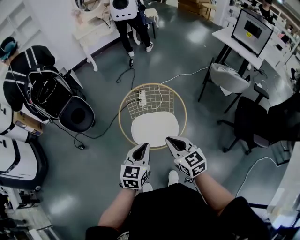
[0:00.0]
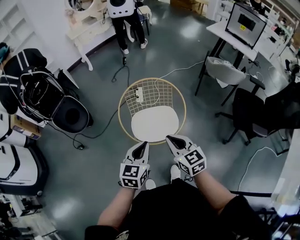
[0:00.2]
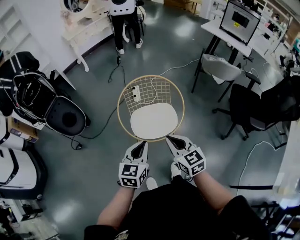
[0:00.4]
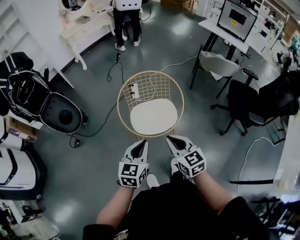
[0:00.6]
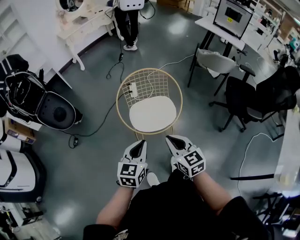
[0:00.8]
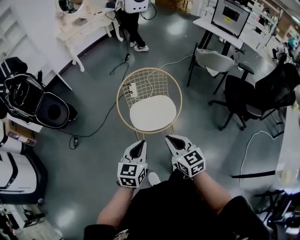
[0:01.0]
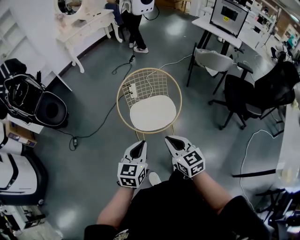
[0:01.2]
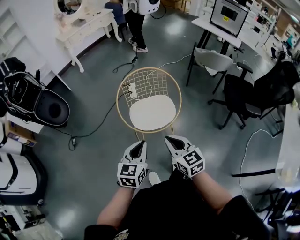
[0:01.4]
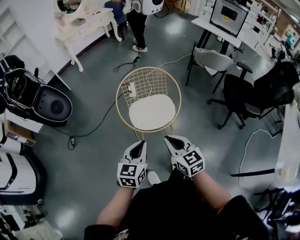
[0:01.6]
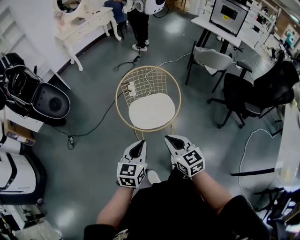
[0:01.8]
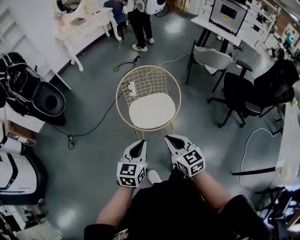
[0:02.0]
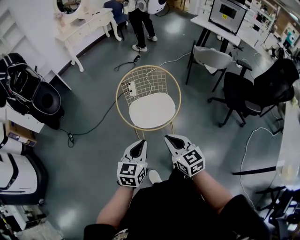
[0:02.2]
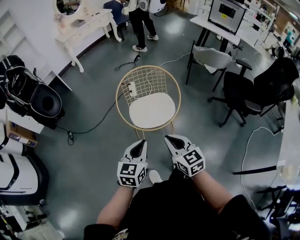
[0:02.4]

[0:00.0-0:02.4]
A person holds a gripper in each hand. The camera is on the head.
0:00.0 to 0:01.2: Both grippers move backward and to the left, some 15 cm.
0:01.2 to 0:02.4: The grippers make only small movements.

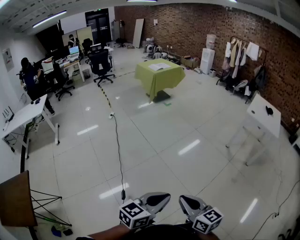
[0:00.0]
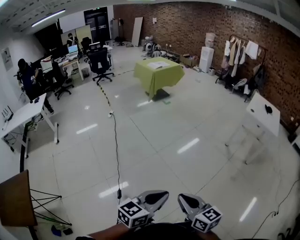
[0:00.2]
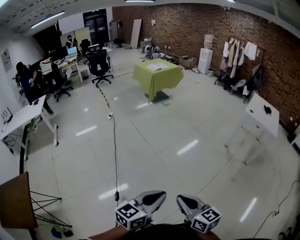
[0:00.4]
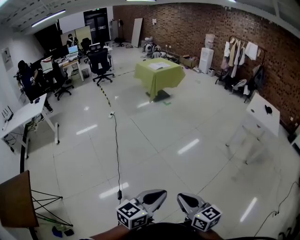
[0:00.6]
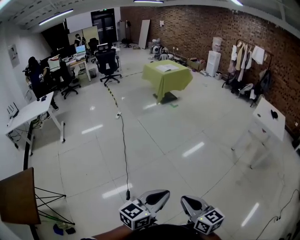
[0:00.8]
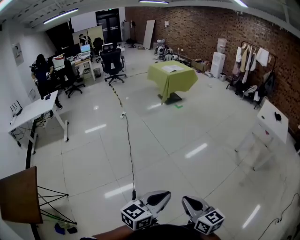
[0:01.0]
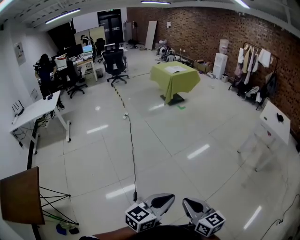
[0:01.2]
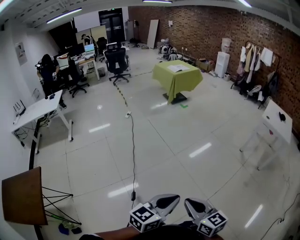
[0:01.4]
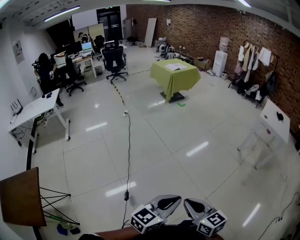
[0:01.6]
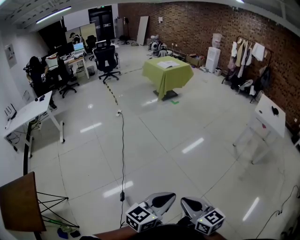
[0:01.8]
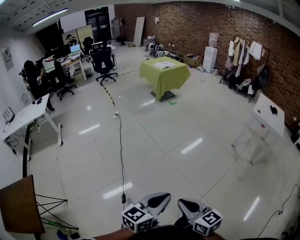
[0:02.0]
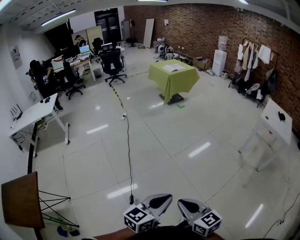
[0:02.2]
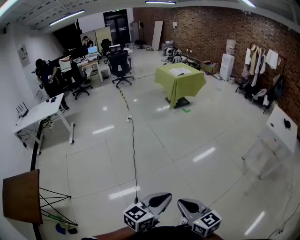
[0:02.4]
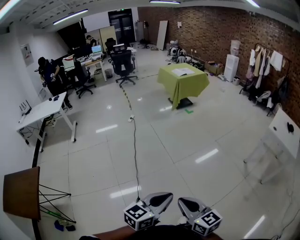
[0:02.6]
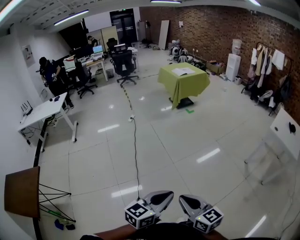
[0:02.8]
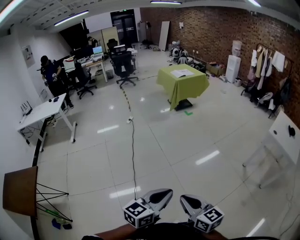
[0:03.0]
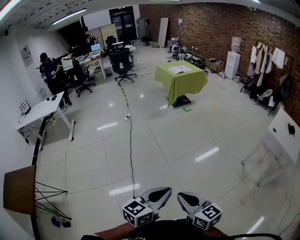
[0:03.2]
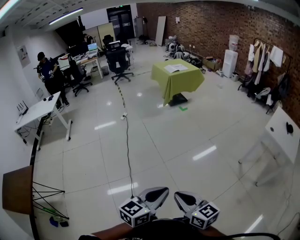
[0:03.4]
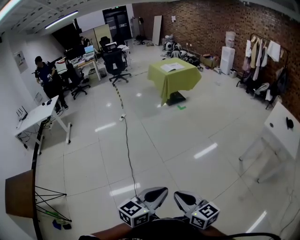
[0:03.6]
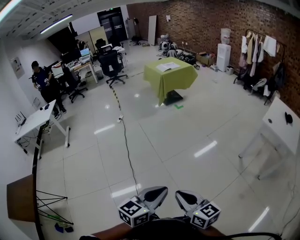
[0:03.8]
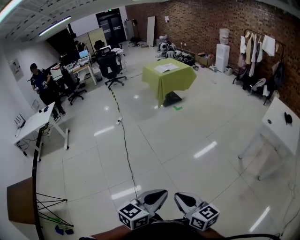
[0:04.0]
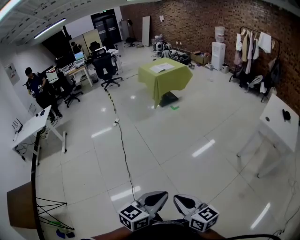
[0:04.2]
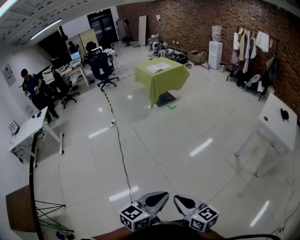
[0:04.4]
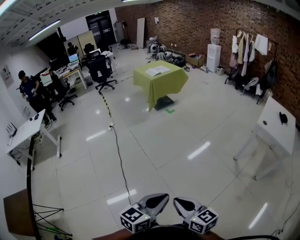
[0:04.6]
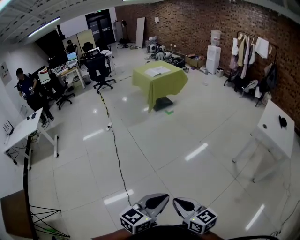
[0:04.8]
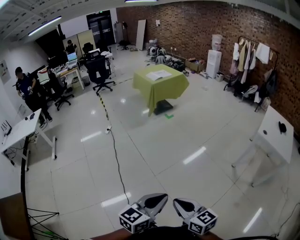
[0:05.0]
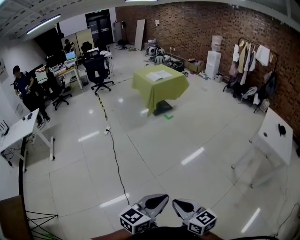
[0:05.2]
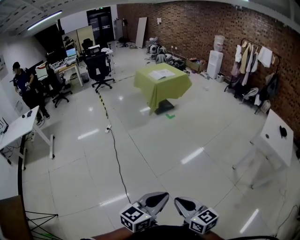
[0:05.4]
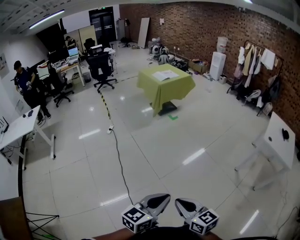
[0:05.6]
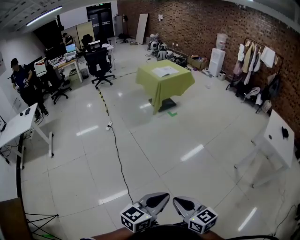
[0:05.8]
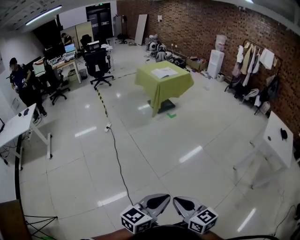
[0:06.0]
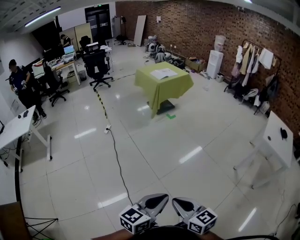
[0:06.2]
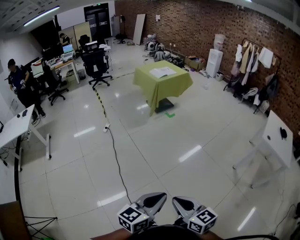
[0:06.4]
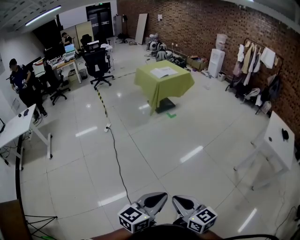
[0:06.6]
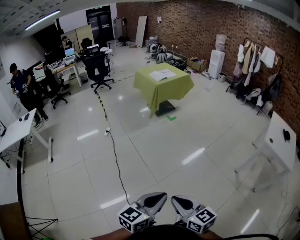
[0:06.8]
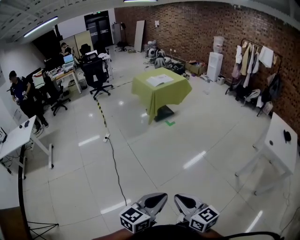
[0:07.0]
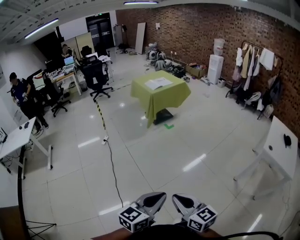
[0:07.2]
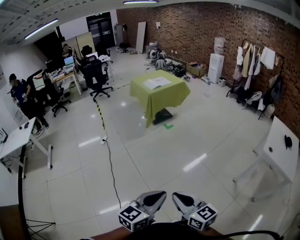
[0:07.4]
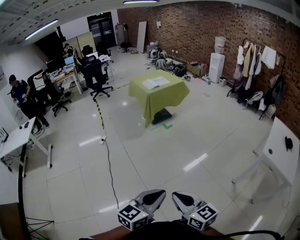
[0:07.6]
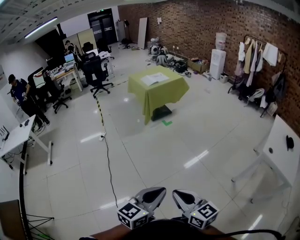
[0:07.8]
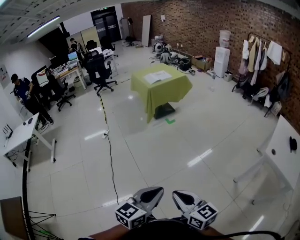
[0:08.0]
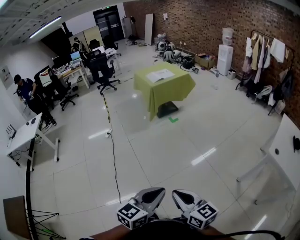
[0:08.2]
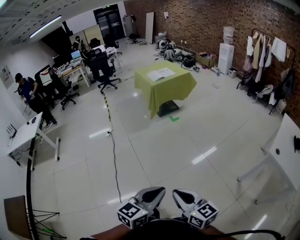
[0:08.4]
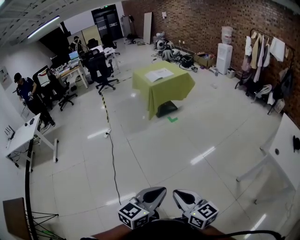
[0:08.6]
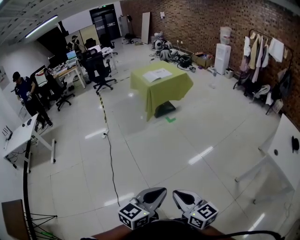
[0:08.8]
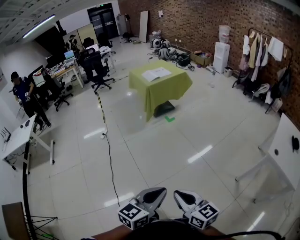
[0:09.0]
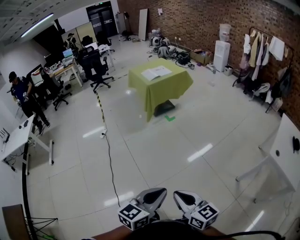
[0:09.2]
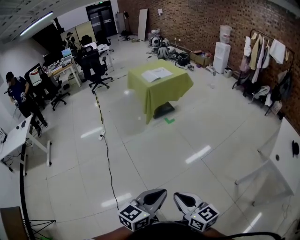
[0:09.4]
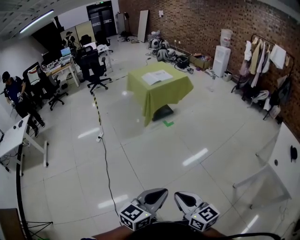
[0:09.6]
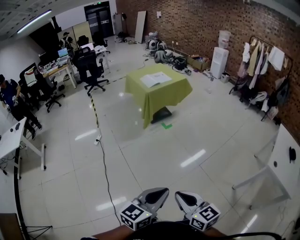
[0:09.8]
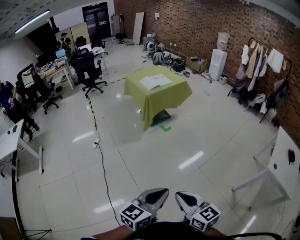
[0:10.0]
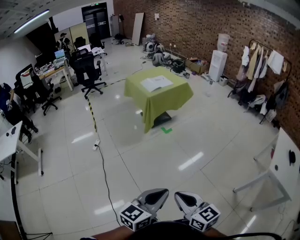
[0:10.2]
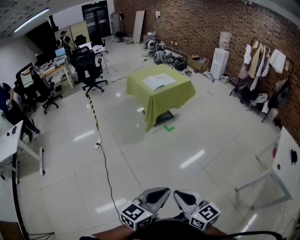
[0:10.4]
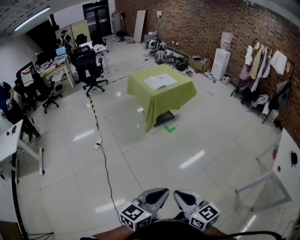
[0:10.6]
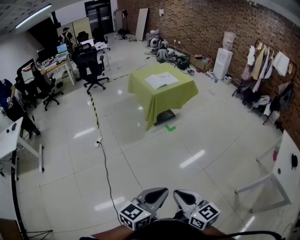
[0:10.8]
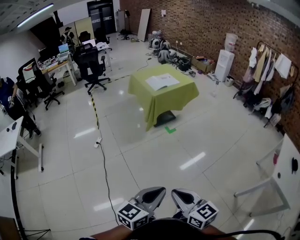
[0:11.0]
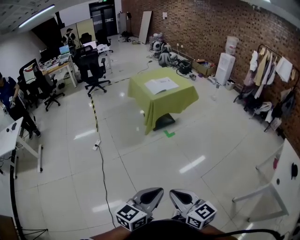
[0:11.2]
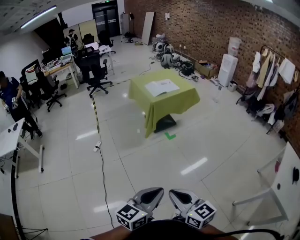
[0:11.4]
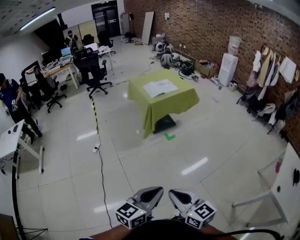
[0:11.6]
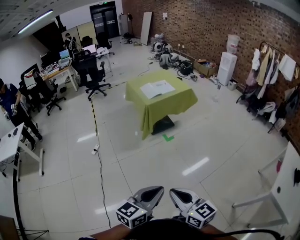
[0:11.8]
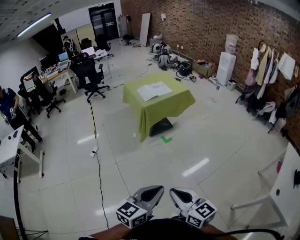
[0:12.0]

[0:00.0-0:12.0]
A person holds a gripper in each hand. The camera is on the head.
0:00.0 to 0:01.6: Both grippers move to the left, approximately 10 cm.
0:01.6 to 0:03.0: The two grippers go about 20 cm forward and to the right.
0:03.0 to 0:04.4: The grippers both shift to the right and forward by roughly 15 cm.
0:04.4 to 0:06.0: The grippers both shift to the left and forward by about 25 cm.
0:06.0 to 0:07.6: Both grippers travel together to the right and forward, approximately 25 cm.
0:07.6 to 0:09.0: Both grippers travel together forward, about 5 cm.
0:09.0 to 0:10.4: The grippers both shift forward and to the left by approximately 25 cm.
0:10.4 to 0:12.0: Both grippers move forward and to the right, roughly 20 cm.

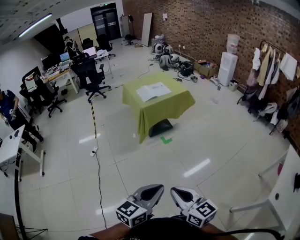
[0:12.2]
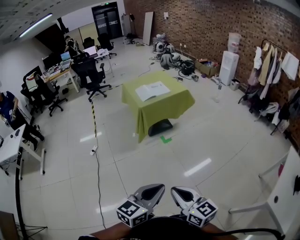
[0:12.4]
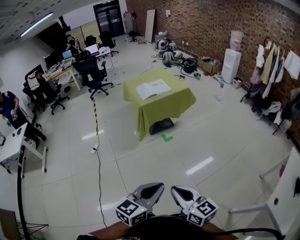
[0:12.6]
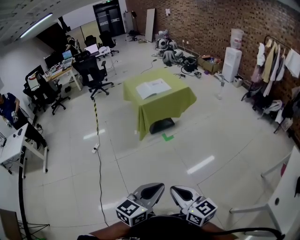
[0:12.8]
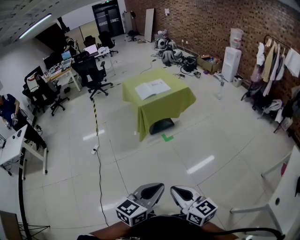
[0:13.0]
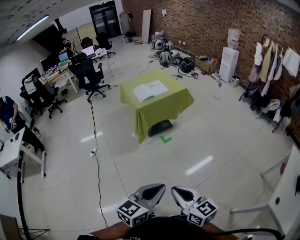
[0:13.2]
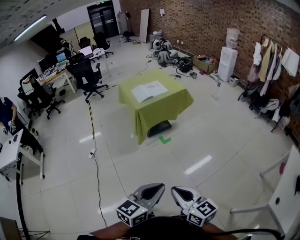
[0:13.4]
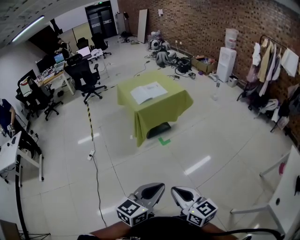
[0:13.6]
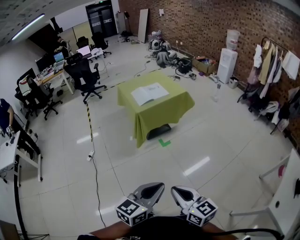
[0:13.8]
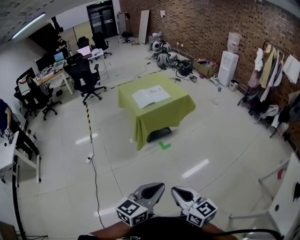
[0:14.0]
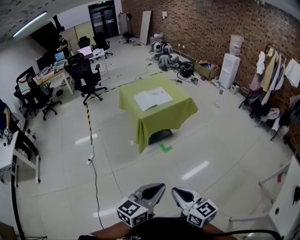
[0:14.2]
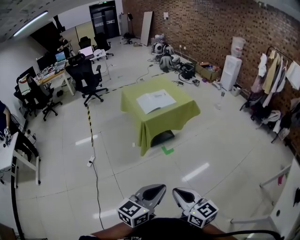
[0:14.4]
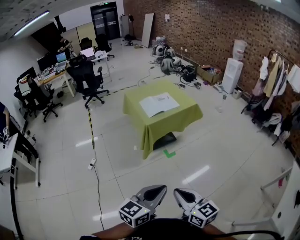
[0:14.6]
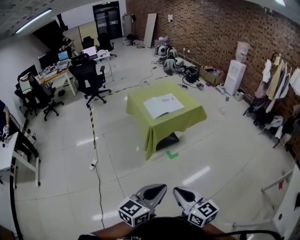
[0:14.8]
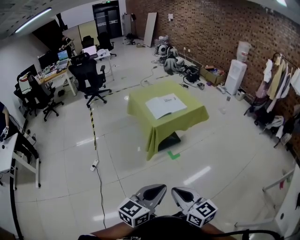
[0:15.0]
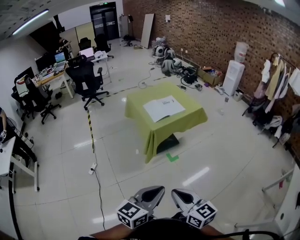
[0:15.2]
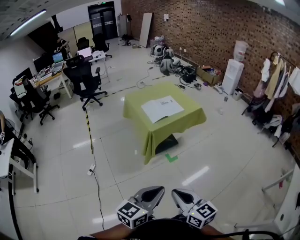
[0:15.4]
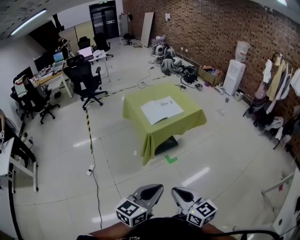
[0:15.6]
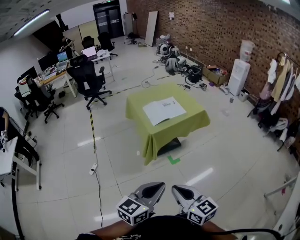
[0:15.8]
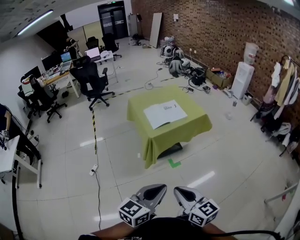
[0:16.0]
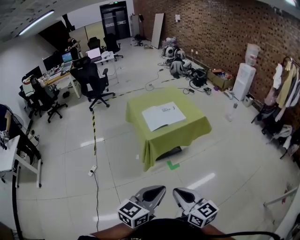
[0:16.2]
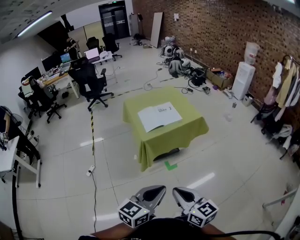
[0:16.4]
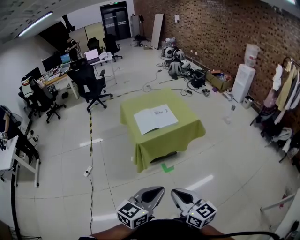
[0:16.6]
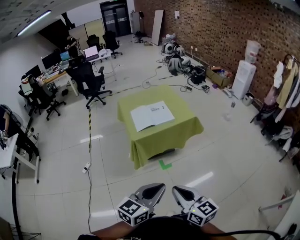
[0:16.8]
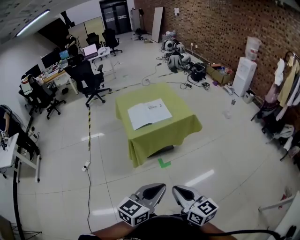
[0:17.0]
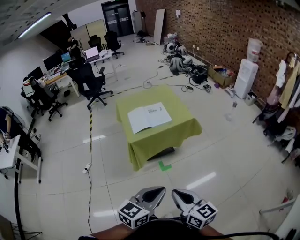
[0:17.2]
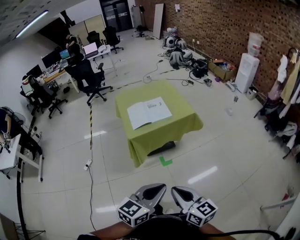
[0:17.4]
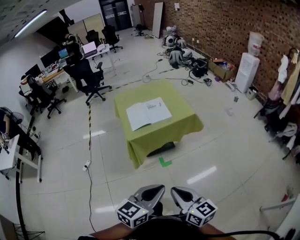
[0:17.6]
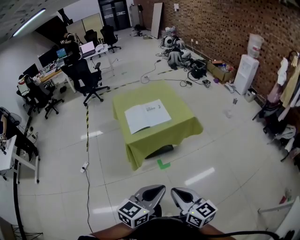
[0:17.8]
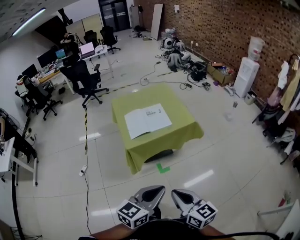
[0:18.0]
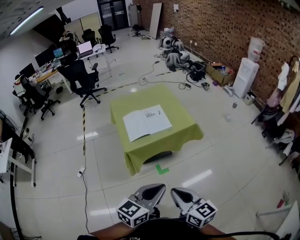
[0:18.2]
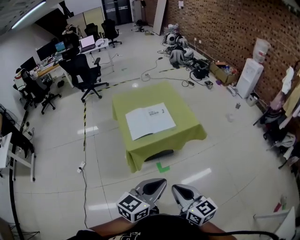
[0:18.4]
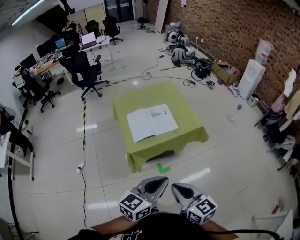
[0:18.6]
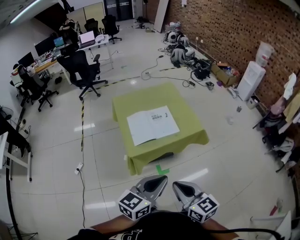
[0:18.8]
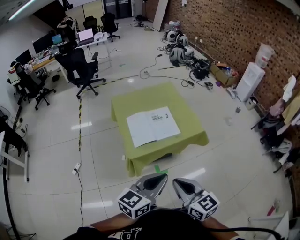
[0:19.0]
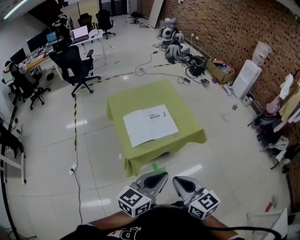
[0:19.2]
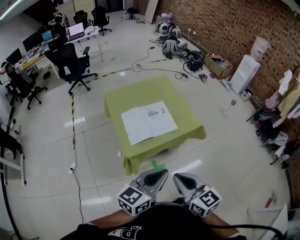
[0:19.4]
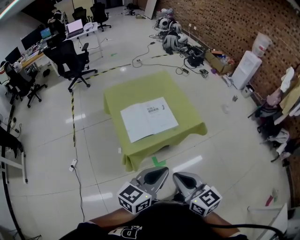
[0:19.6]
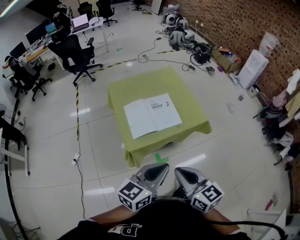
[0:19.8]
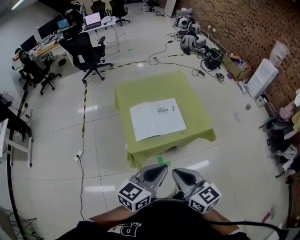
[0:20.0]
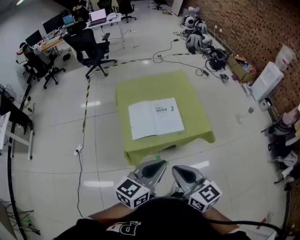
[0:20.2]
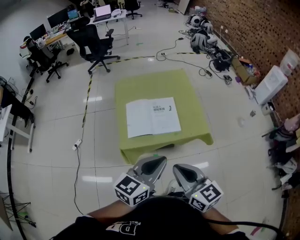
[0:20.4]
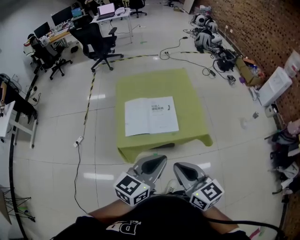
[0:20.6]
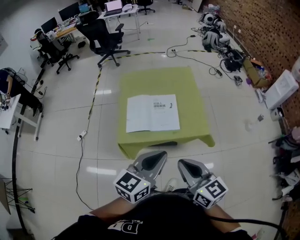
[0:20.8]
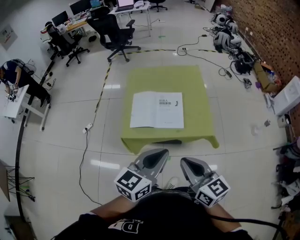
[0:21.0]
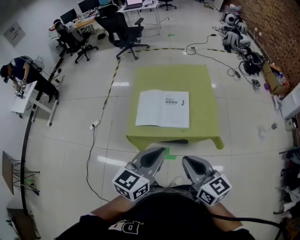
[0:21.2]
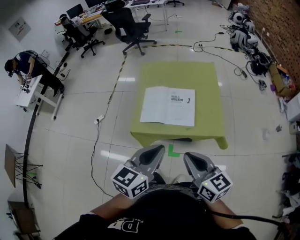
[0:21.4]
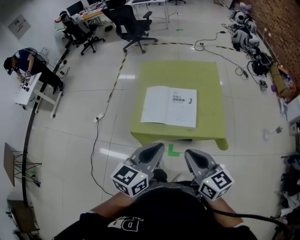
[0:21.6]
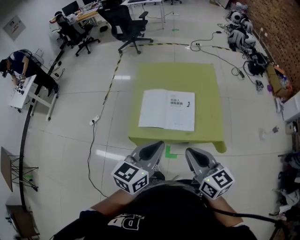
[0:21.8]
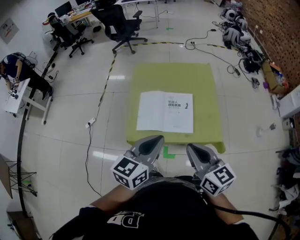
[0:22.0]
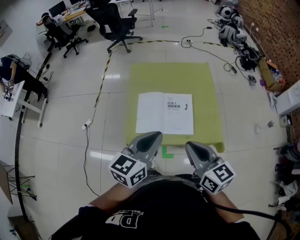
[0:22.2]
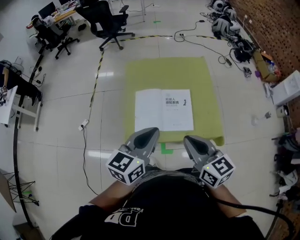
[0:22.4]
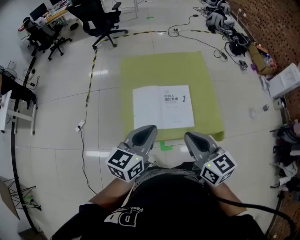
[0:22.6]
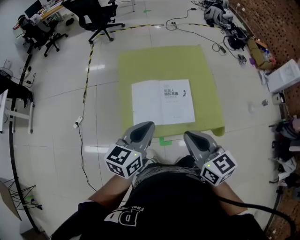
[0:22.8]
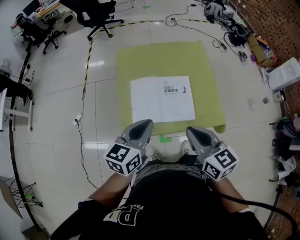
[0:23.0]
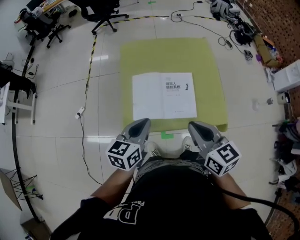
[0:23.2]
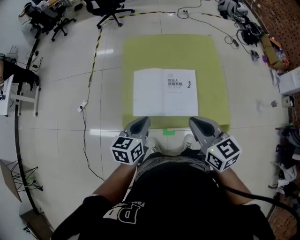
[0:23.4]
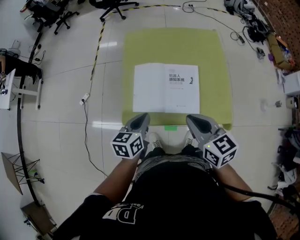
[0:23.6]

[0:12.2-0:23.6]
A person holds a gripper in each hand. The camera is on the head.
0:12.2 to 0:13.6: The two grippers go roughly 10 cm forward.
0:13.6 to 0:15.0: Both grippers move to the left and forward, approximately 25 cm.
0:15.0 to 0:16.4: Both grippers travel together forward and to the right, roughly 20 cm.
0:16.4 to 0:17.8: The two grippers go approximately 15 cm to the right and forward.
0:17.8 to 0:19.4: Both grippers move forward, about 25 cm.
0:19.4 to 0:20.8: Both grippers move to the right and forward, some 15 cm. The left gripper turns by approximately 20 degrees.
0:20.8 to 0:22.2: The right gripper moves forward, approximately 15 cm. The left gripper goes about 15 cm forward and to the left.
0:22.2 to 0:23.6: The right gripper moves downward and forward, some 10 cm. The left gripper shifts some 20 cm downward, and swivels about 30 degrees.
